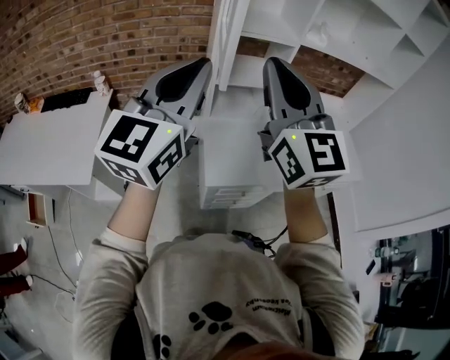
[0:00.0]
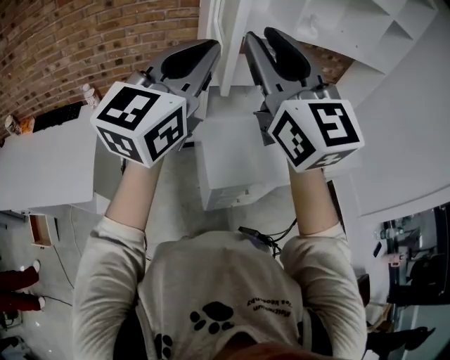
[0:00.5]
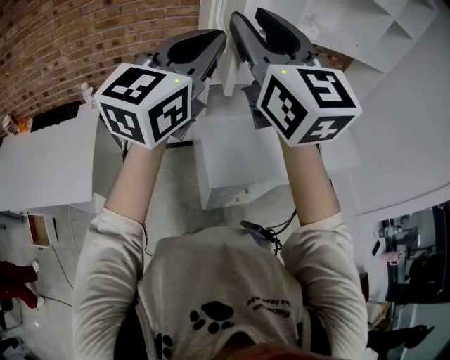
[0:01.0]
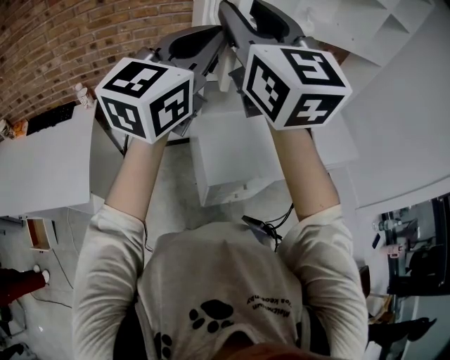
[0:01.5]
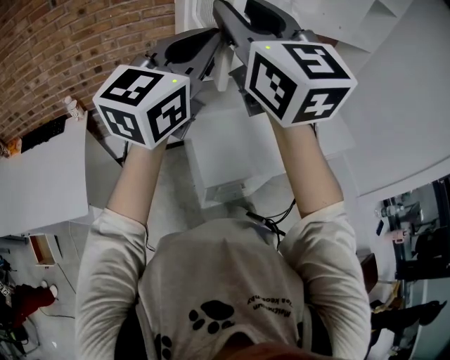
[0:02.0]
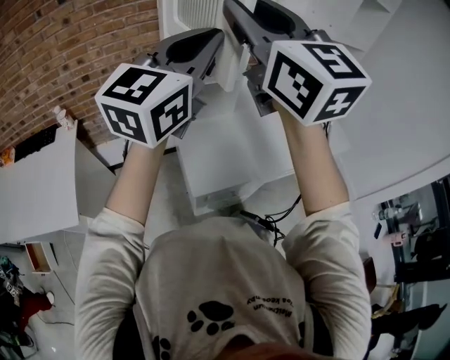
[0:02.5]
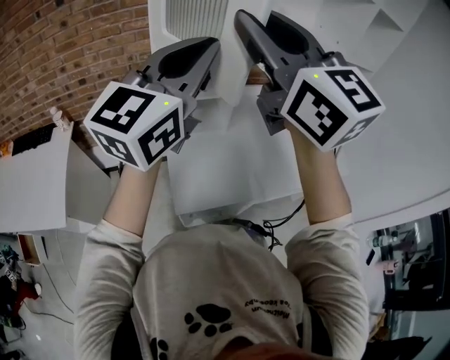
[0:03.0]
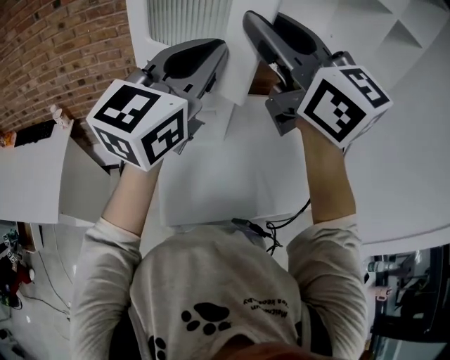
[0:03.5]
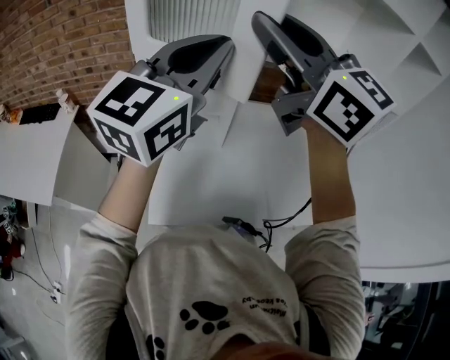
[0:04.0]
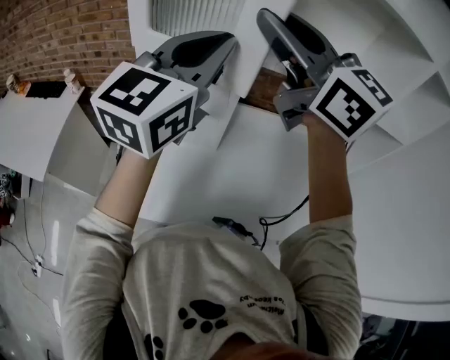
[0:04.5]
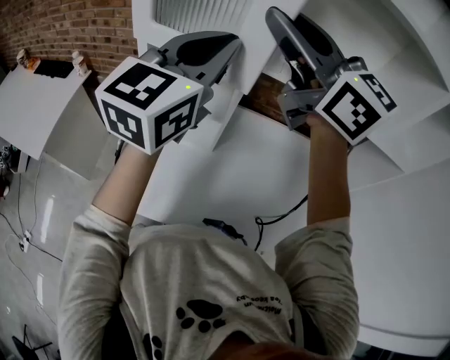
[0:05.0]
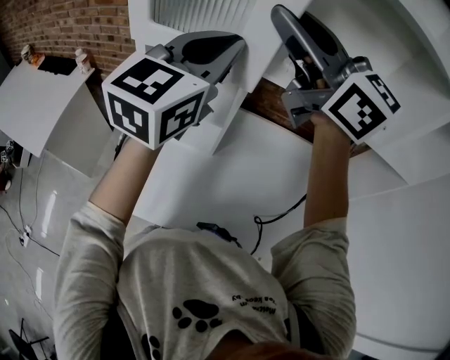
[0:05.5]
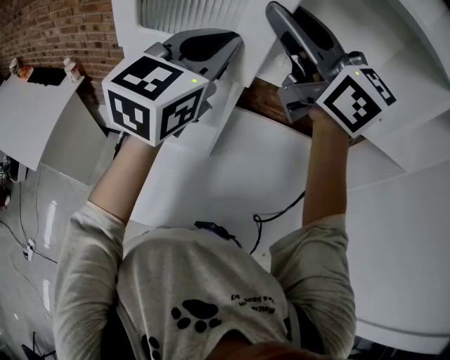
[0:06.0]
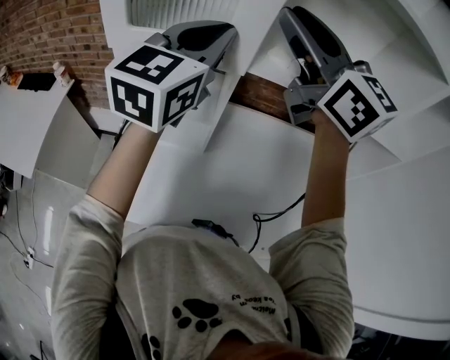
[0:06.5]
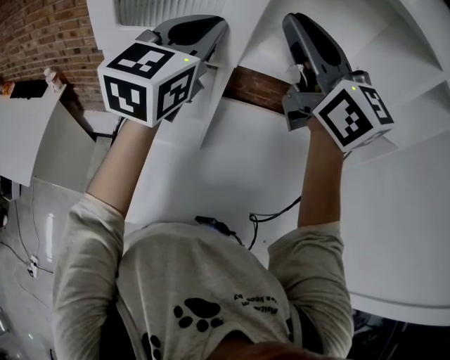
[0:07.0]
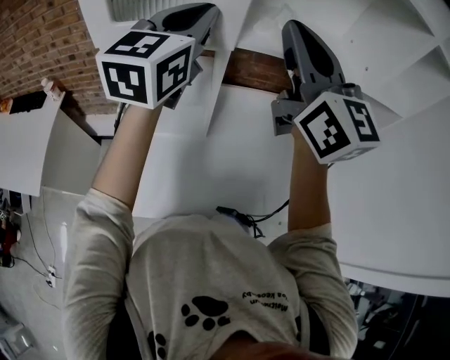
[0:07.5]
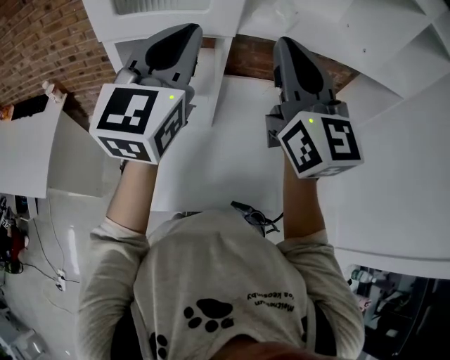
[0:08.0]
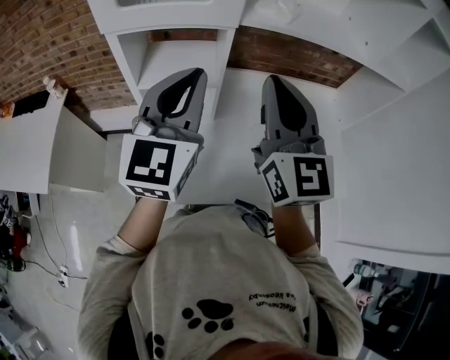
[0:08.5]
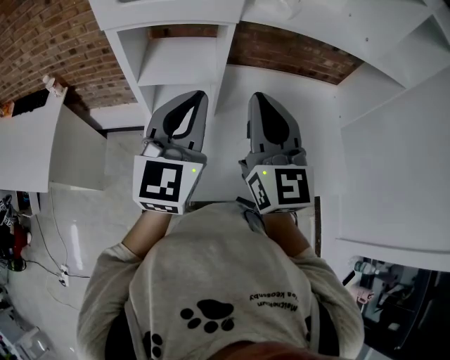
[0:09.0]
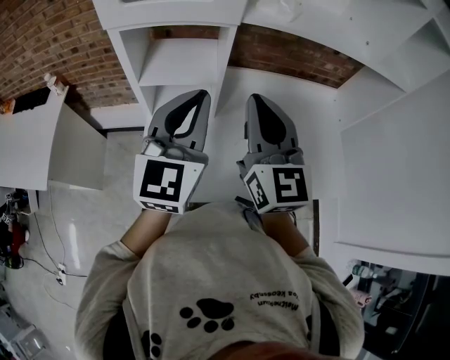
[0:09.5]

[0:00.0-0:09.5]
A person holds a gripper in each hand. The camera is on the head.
0:00.0 to 0:02.0: The right gripper travels upward, to the left and forward by some 10 cm, and opens its fingers, while the left gripper goes about 5 cm forward.
0:02.0 to 0:04.0: Both grippers travel together to the right and forward, about 25 cm. The right gripper rotates approximately 30 degrees.
0:04.0 to 0:05.5: The right gripper moves forward, roughly 10 cm, while the left gripper shifts about 10 cm forward and to the right.
0:05.5 to 0:07.5: The right gripper travels to the right by about 10 cm, turns by about 40 degrees, and closes.
0:07.5 to 0:09.5: The left gripper shifts roughly 20 cm backward and downward; the right gripper travels downward and backward by roughly 20 cm.

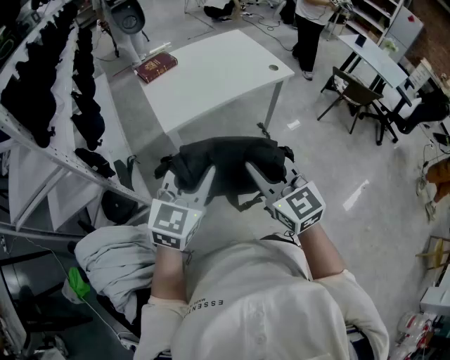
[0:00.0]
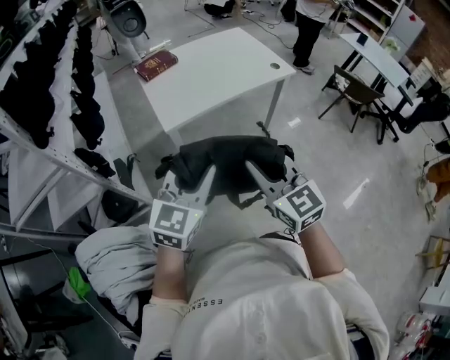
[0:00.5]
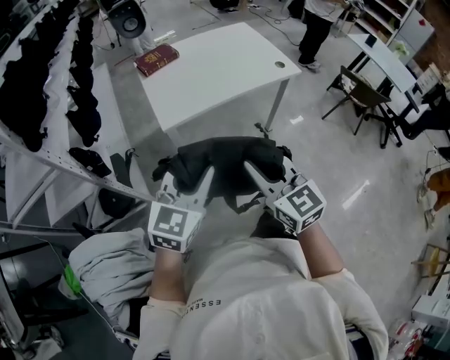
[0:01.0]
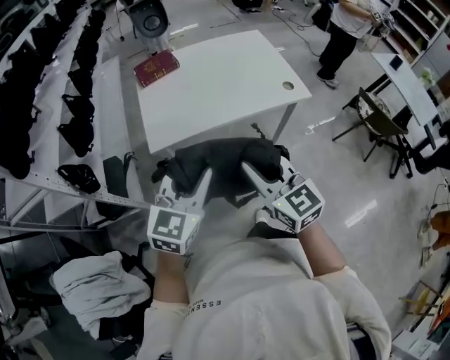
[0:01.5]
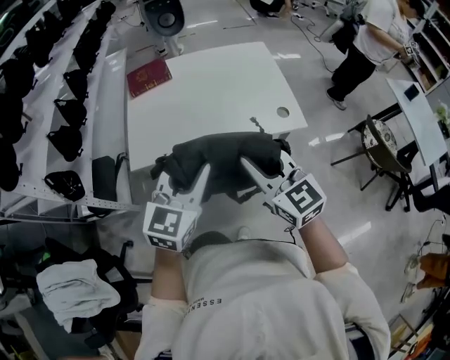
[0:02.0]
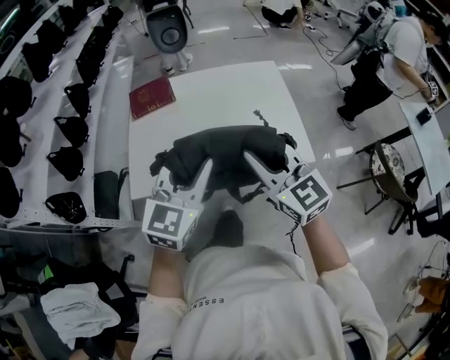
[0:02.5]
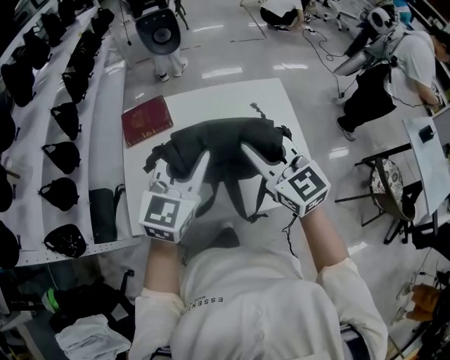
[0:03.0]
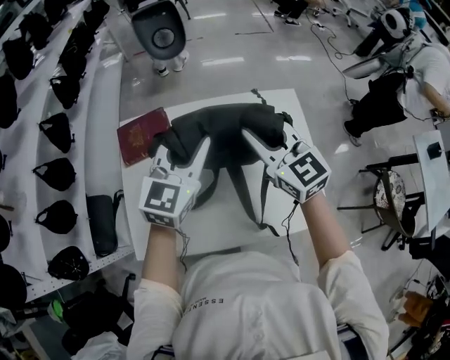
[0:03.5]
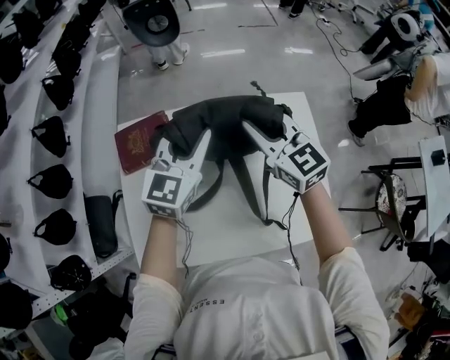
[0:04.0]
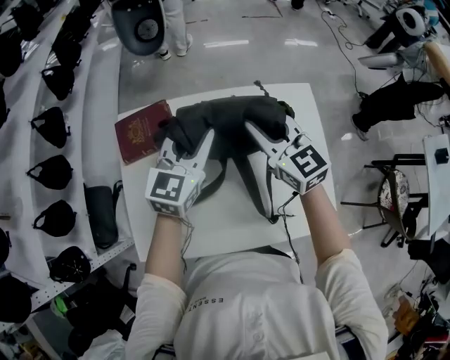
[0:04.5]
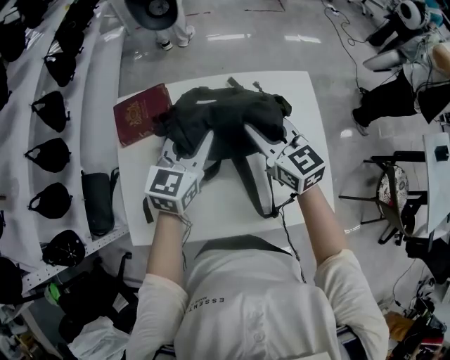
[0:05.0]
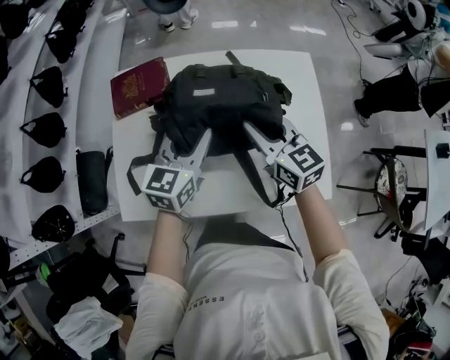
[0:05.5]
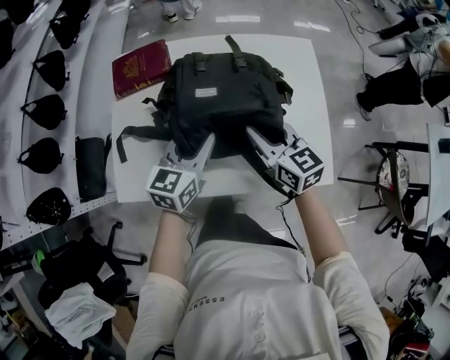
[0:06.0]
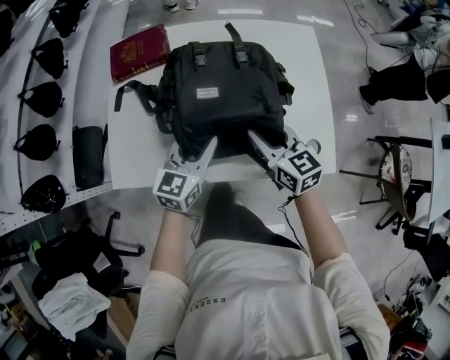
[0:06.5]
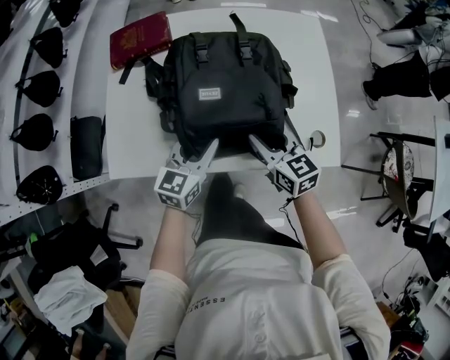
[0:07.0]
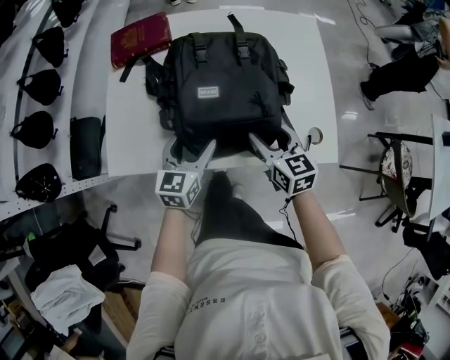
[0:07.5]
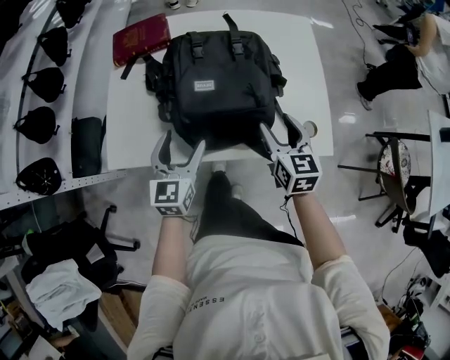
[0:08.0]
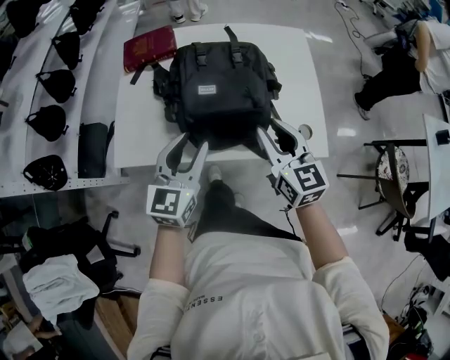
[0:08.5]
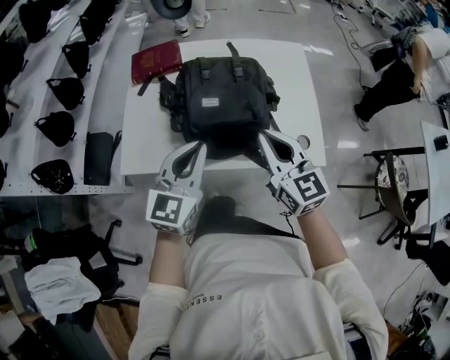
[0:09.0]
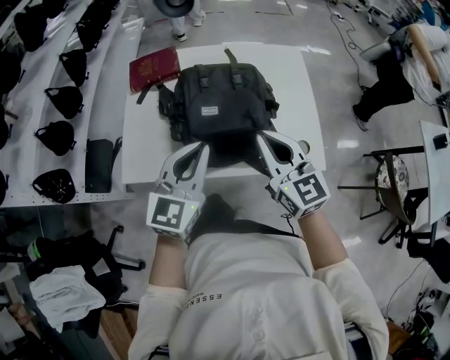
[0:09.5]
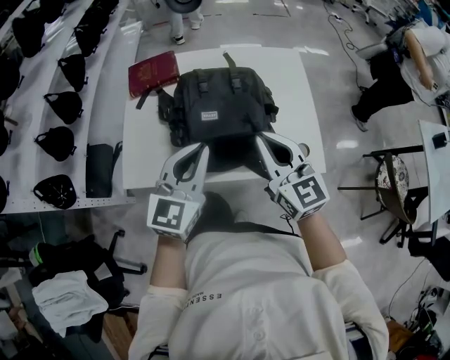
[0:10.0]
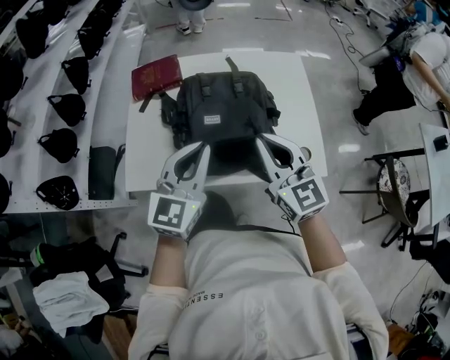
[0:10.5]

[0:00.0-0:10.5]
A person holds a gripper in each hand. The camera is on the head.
0:00.0 to 0:02.0: Both grippers travel together forward and to the right, roughly 35 cm. The left gripper changes its angle by about 20 degrees, while the right gripper changes its angle by roughly 20 degrees.
0:02.0 to 0:04.0: Both grippers are carried forward, about 50 cm.
0:04.0 to 0:06.5: Both grippers travel together backward and downward, about 30 cm. The right gripper turns by approximately 20 degrees.
0:06.5 to 0:08.5: Both grippers travel together backward and upward, roughly 10 cm. The left gripper opens, then closes once more. The right gripper opens, then closes once more.
0:08.5 to 0:10.5: The grippers both shift upward by some 10 cm. The left gripper closes up. The right gripper closes up.

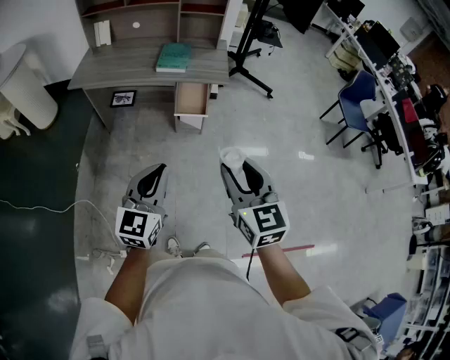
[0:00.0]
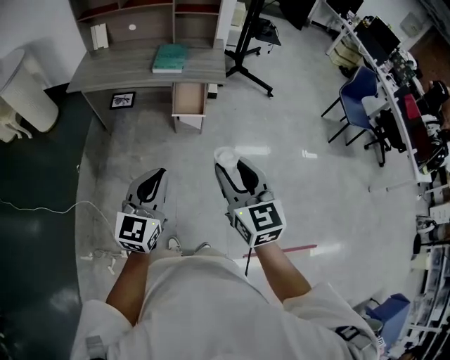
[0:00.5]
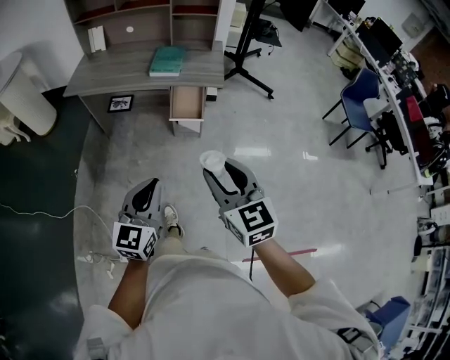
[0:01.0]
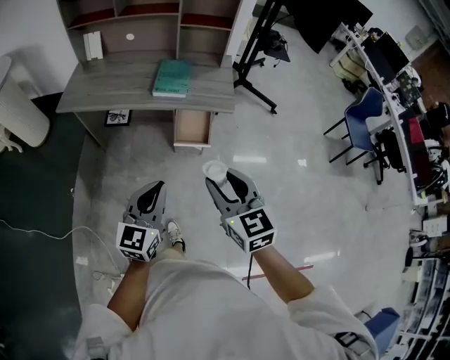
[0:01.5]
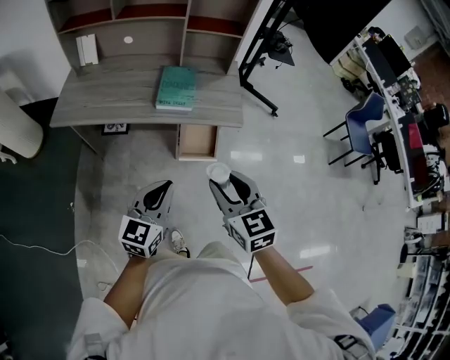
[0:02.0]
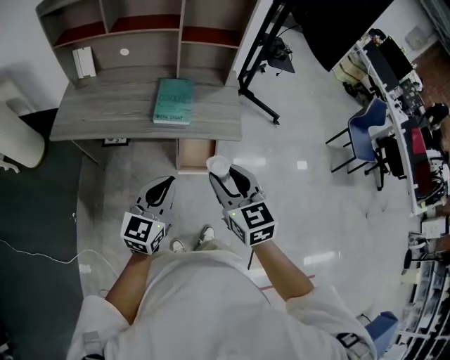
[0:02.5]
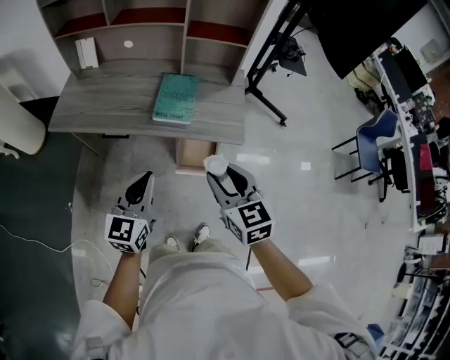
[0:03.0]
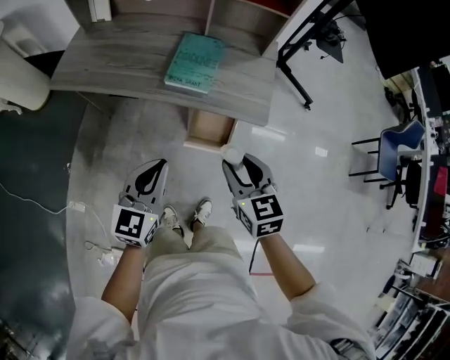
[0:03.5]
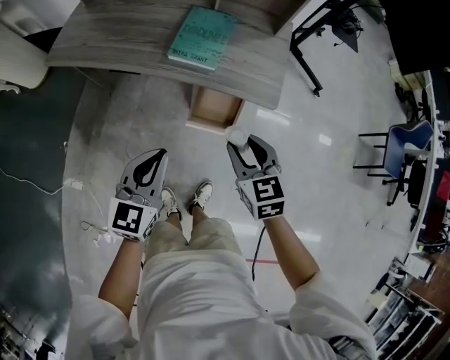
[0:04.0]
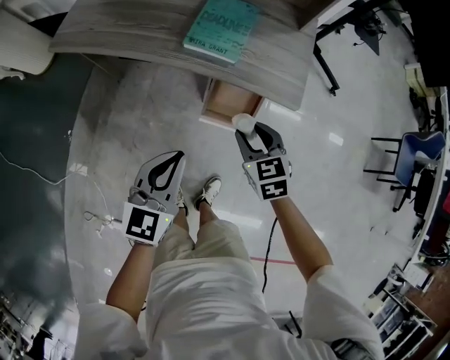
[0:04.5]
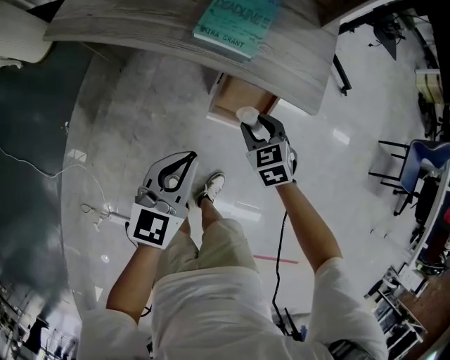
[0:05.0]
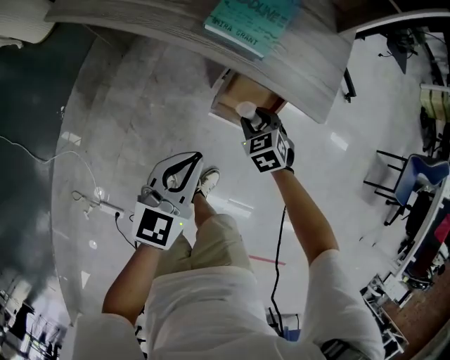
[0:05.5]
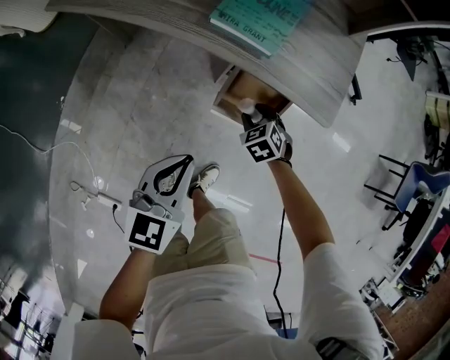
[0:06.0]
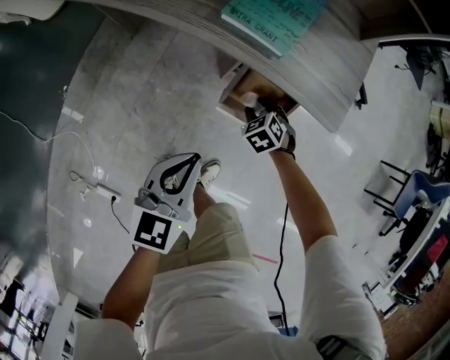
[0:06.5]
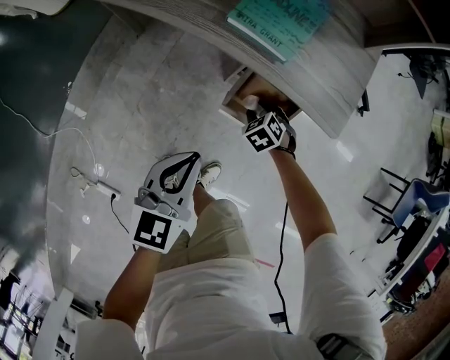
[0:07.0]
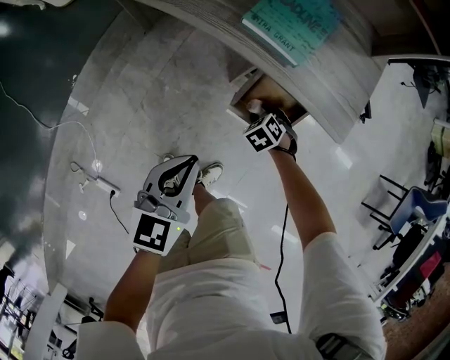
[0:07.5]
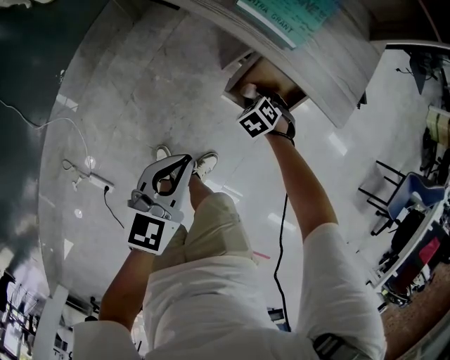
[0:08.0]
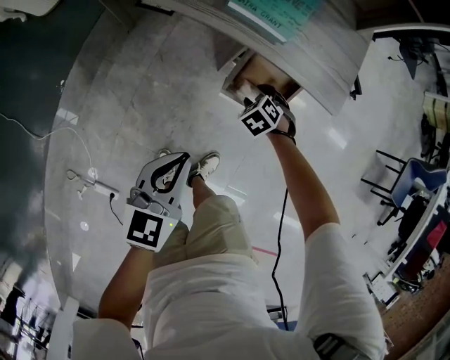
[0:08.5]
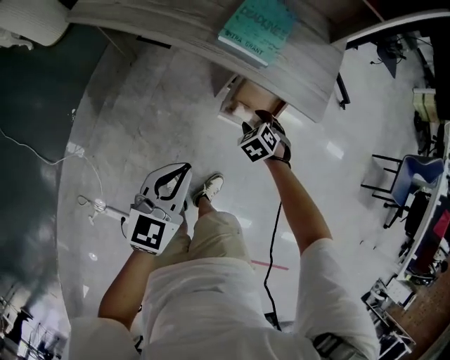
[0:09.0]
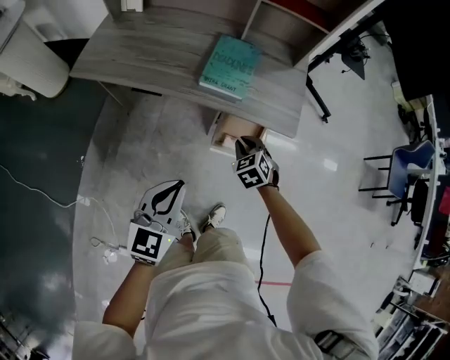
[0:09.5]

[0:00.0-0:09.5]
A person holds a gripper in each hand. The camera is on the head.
0:00.0 to 0:02.0: Both grippers travel together forward, some 30 cm.
0:02.0 to 0:04.0: The right gripper travels downward, forward and to the right by some 25 cm; the left gripper shifts some 10 cm forward and downward.
0:04.0 to 0:05.5: The left gripper is displaced downward by some 10 cm. The right gripper heads downward, covering roughly 25 cm, and changes its angle by some 30 degrees.
0:05.5 to 0:07.5: The right gripper is displaced downward by roughly 10 cm, and rotates about 20 degrees.
0:07.5 to 0:09.5: The left gripper goes roughly 15 cm upward; the right gripper moves upward, approximately 25 cm, rotates about 30 degrees, and closes its fingers.
